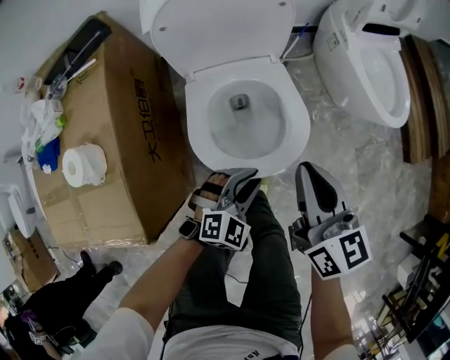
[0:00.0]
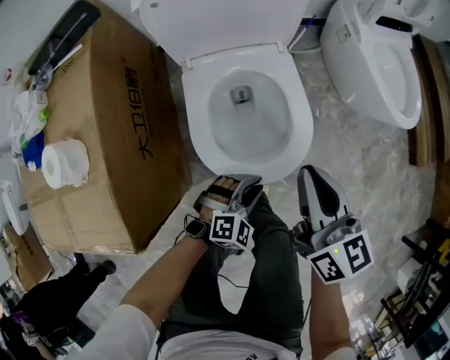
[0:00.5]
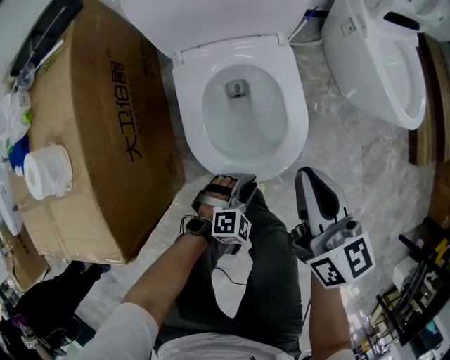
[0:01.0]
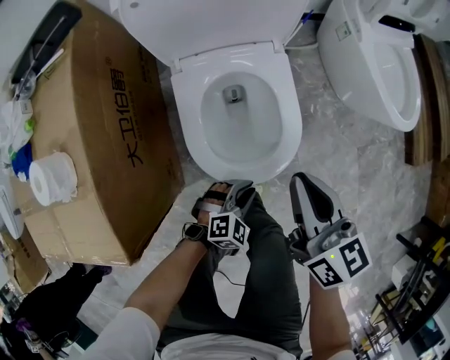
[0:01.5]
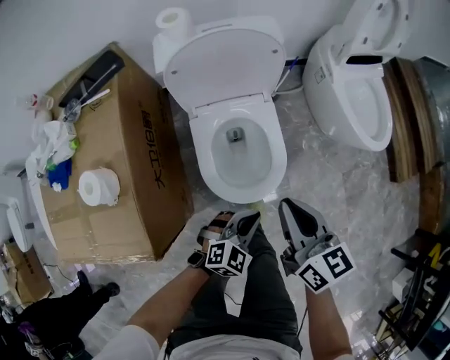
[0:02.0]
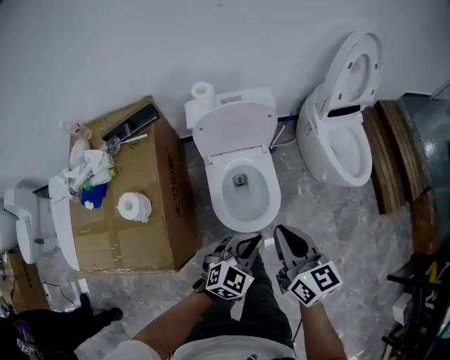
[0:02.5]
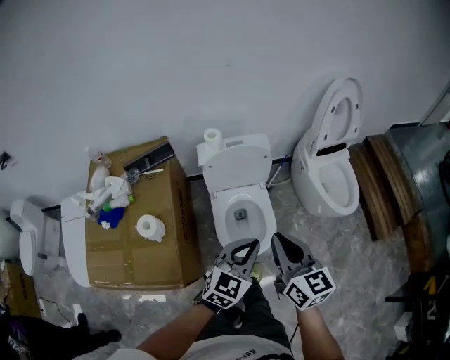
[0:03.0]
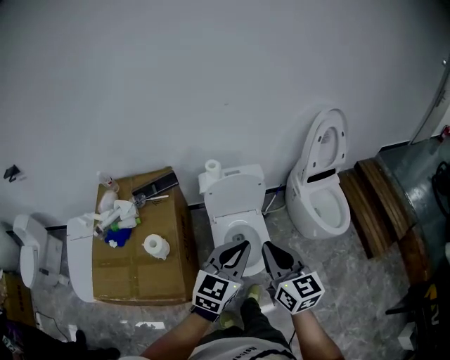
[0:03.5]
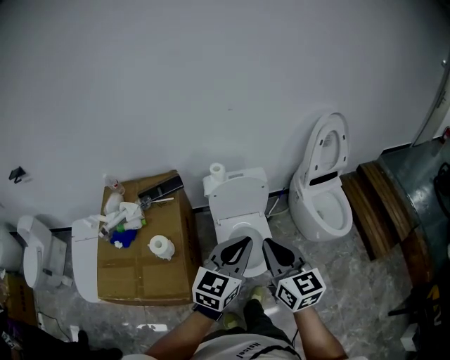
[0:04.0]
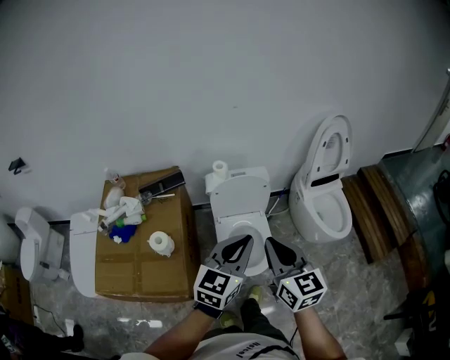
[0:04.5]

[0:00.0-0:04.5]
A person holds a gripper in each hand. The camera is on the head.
0.0 to 2.0 s: The right gripper goes downward and returns, roughly 10 cm each way. The left gripper moves some 20 cm downward and comes back.
2.0 to 4.5 s: The grippers both shift upward by roughly 40 cm. The right gripper changes its angle by roughly 30 degrees. The left gripper points its fingers approximately 30 degrees further upward.

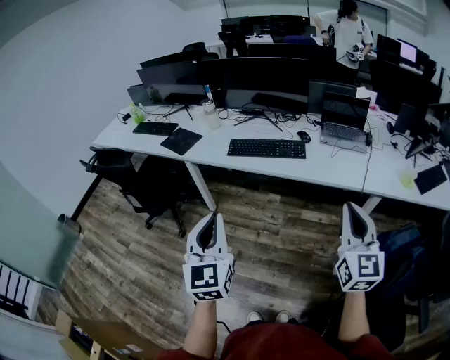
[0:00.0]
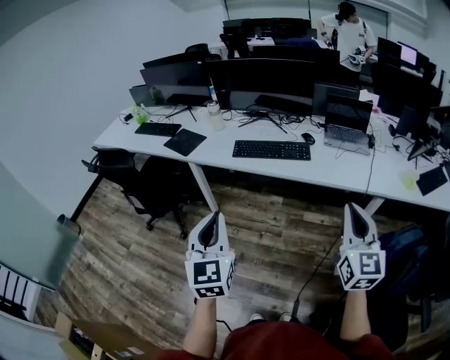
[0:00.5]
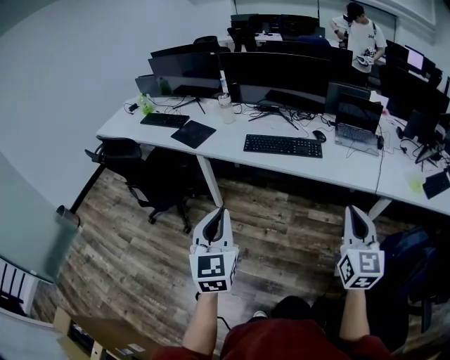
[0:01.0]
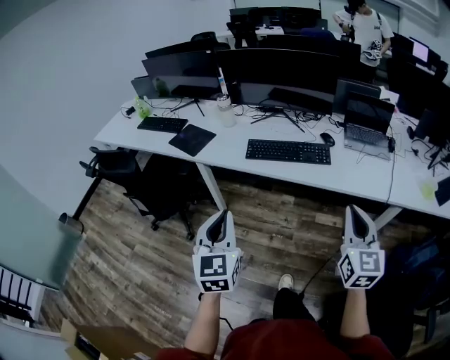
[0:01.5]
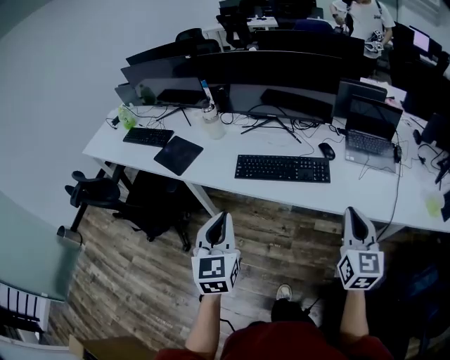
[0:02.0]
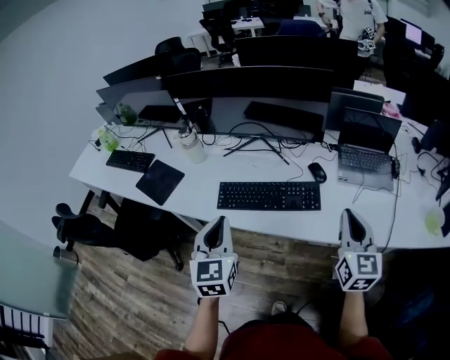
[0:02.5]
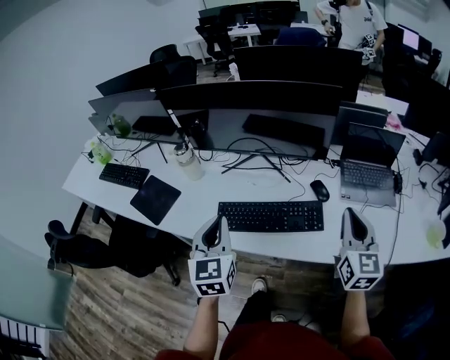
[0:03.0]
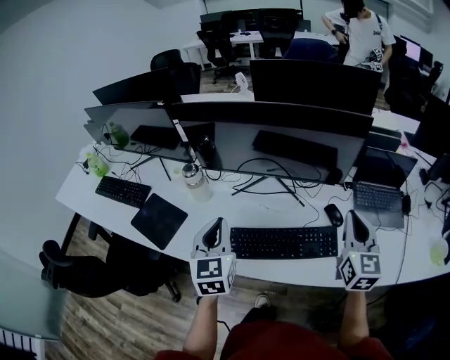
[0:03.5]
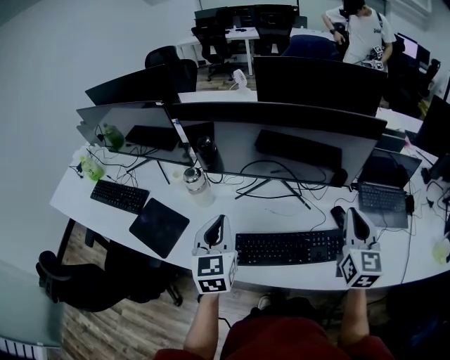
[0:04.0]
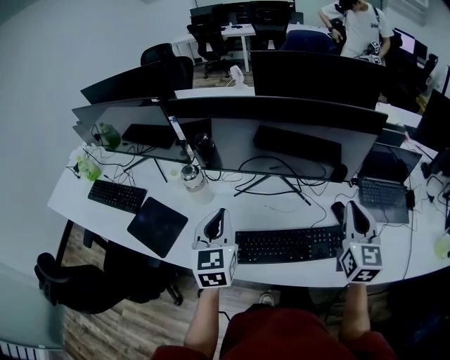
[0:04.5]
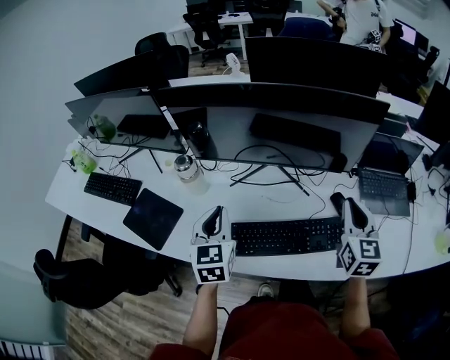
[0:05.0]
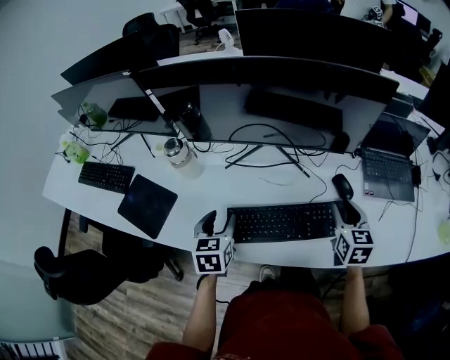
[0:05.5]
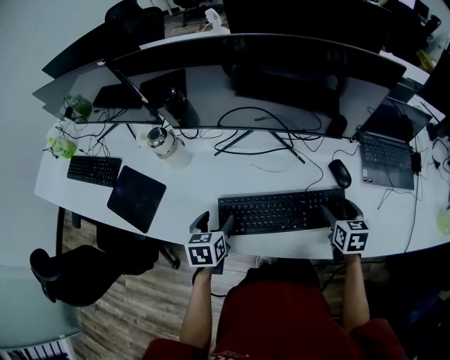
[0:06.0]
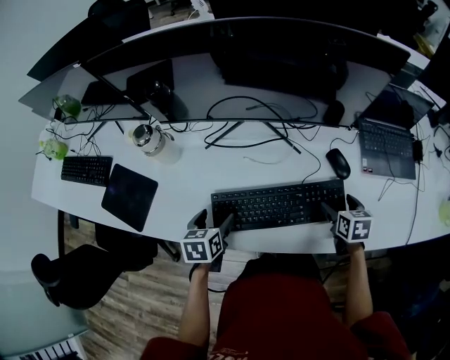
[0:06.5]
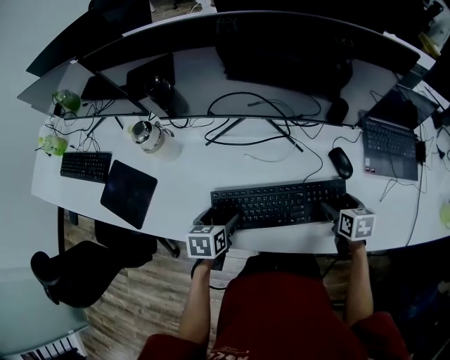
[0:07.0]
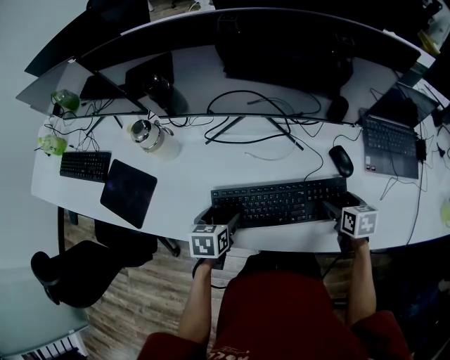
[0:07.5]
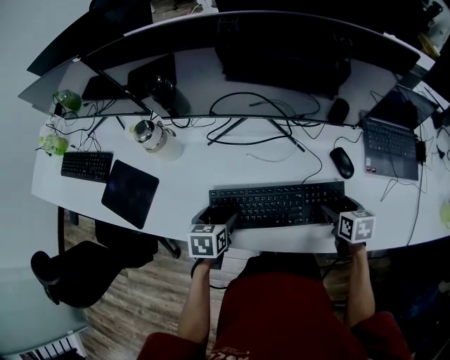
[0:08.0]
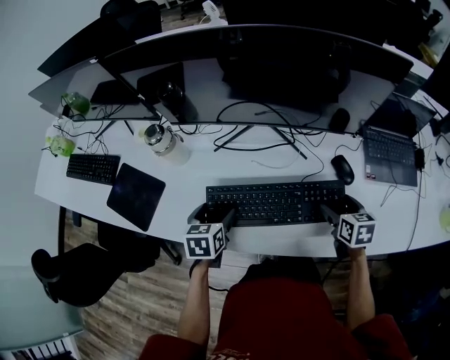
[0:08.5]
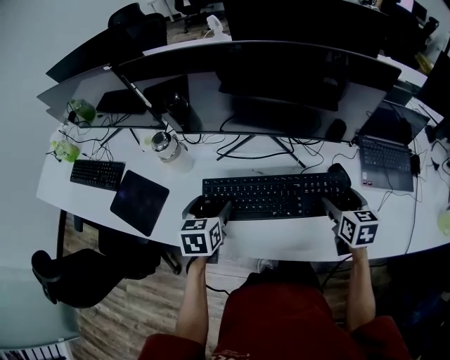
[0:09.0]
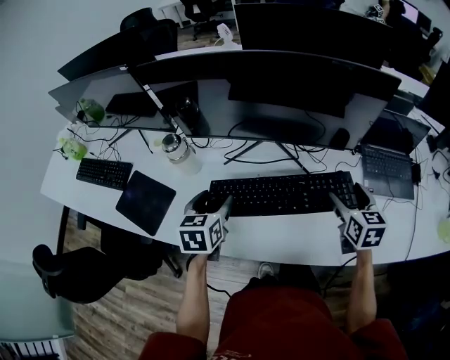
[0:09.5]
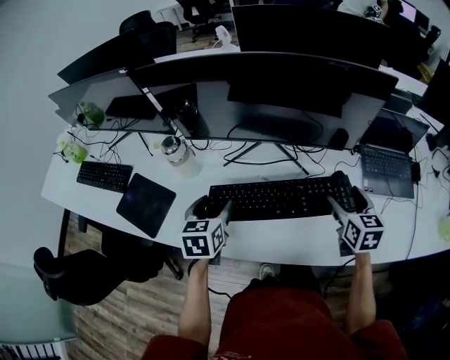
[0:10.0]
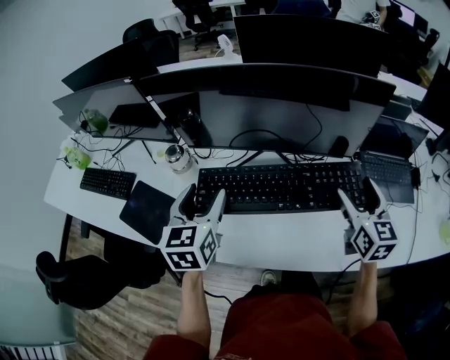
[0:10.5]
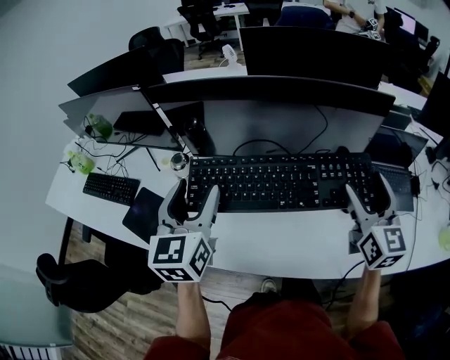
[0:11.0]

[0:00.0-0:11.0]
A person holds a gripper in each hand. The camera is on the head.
0.0 to 2.0 s: Both grippers travel together forward, some 25 cm.
2.0 to 3.5 s: The grippers both shift forward by some 35 cm.
3.5 to 5.5 s: Both grippers move downward, approximately 15 cm. The left gripper swivels roughly 30 degrees, and opens its fingers. Meanwhile the right gripper changes its angle by some 20 degrees.
5.5 to 7.5 s: The grippers both shift downward by roughly 15 cm. The right gripper swivels about 30 degrees, and opens its fingers. Meanwhile the left gripper turns by approximately 20 degrees, and opens.
7.5 to 9.0 s: The left gripper travels upward and forward by roughly 10 cm. The right gripper travels upward by about 10 cm.
9.0 to 11.0 s: Both grippers travel together upward, approximately 25 cm. The right gripper angles its fingers upward, by approximately 30 degrees; the left gripper points its fingers some 30 degrees further upward.

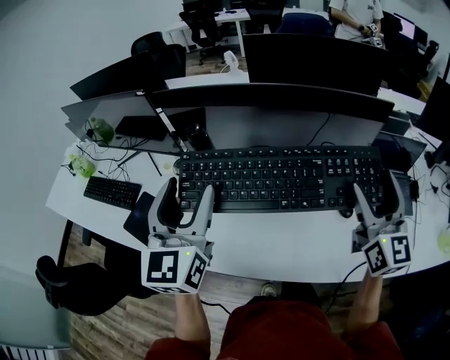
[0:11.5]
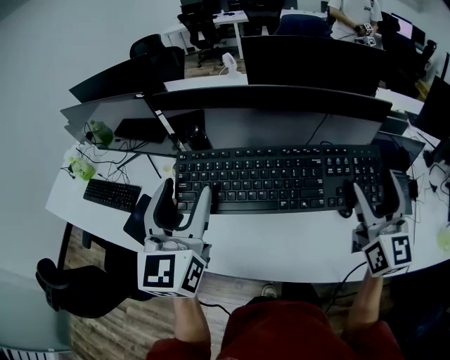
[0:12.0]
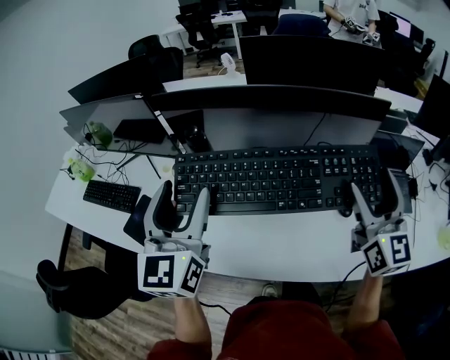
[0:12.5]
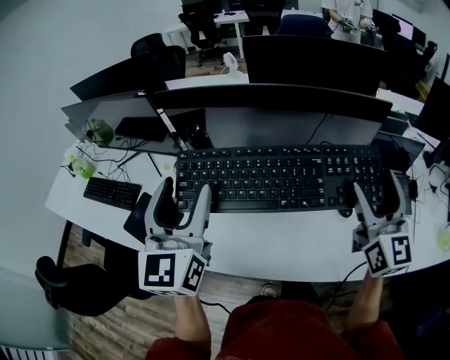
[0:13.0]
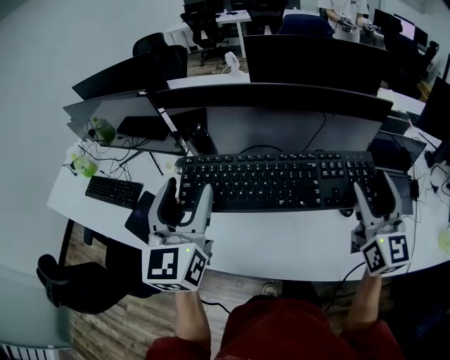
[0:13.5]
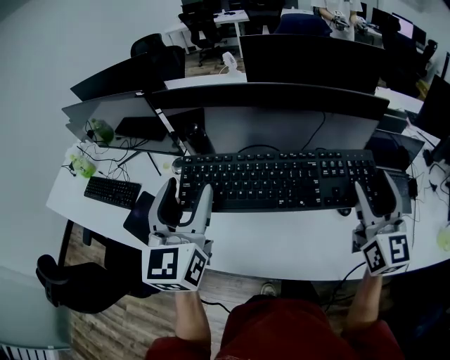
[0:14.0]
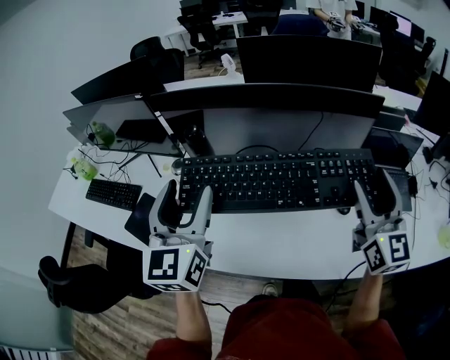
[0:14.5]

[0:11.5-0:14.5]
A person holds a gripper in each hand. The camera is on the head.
11.5 to 13.0 s: Both grippers stay about where they are.
13.0 to 14.5 s: The two grippers keep their place.

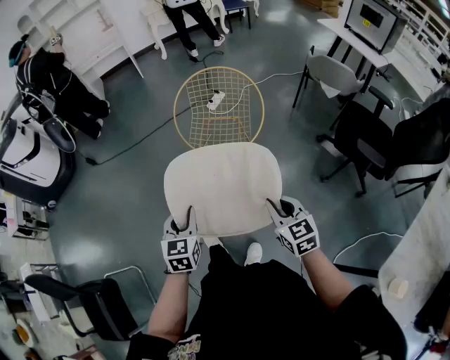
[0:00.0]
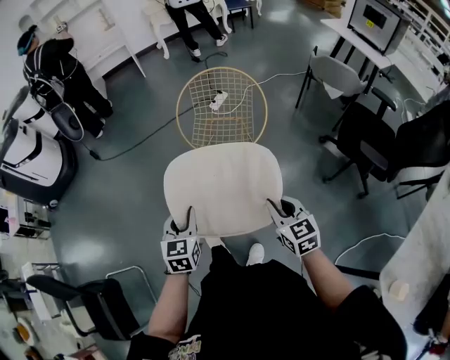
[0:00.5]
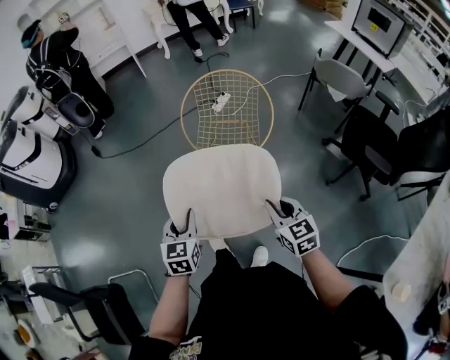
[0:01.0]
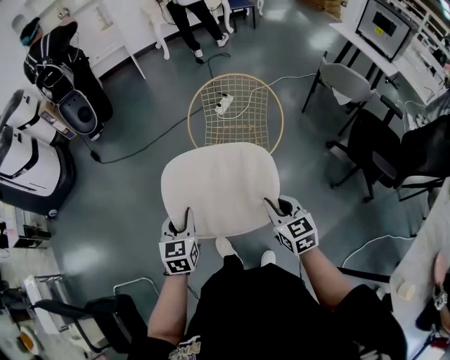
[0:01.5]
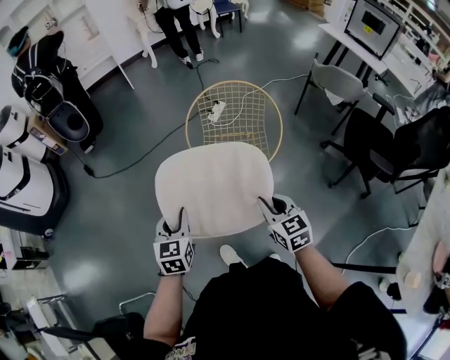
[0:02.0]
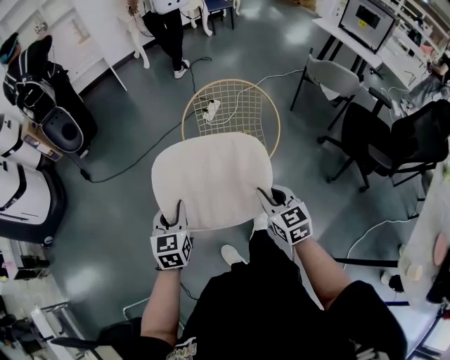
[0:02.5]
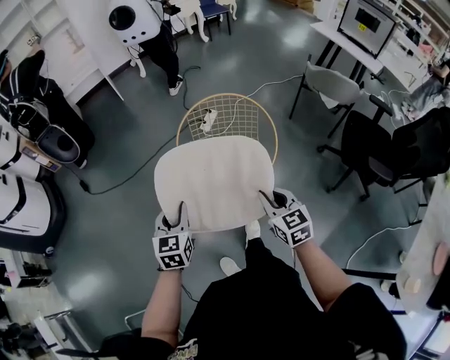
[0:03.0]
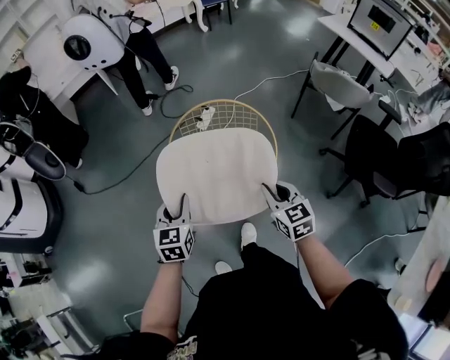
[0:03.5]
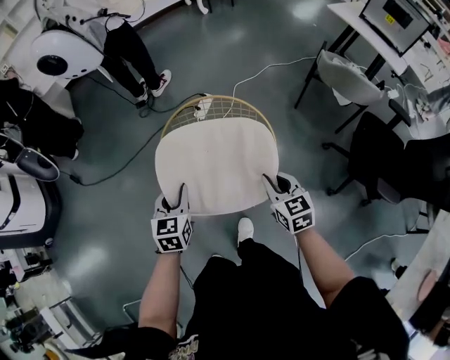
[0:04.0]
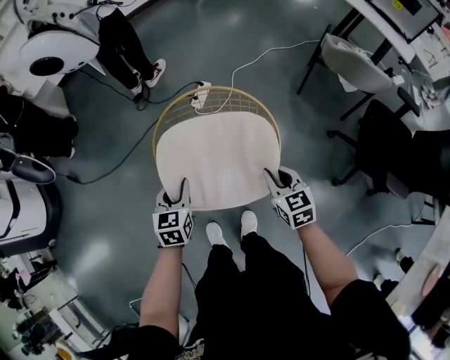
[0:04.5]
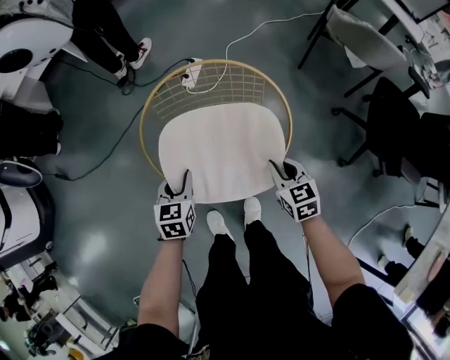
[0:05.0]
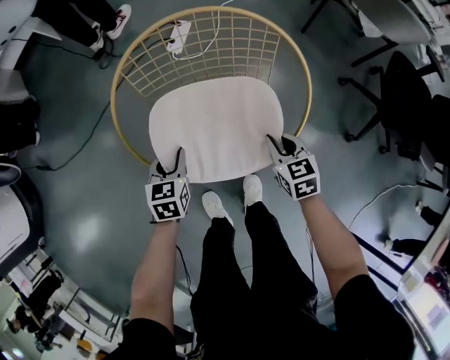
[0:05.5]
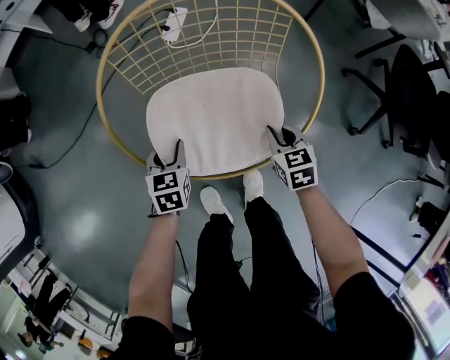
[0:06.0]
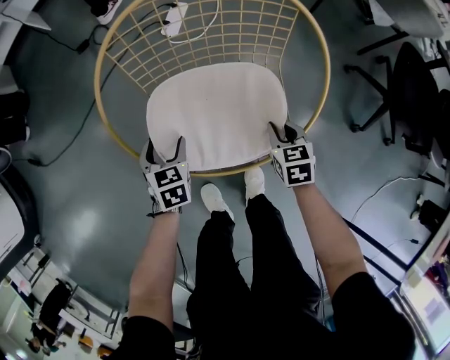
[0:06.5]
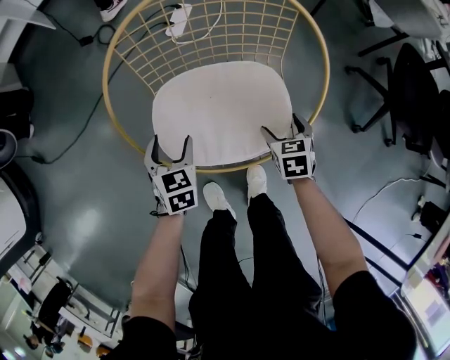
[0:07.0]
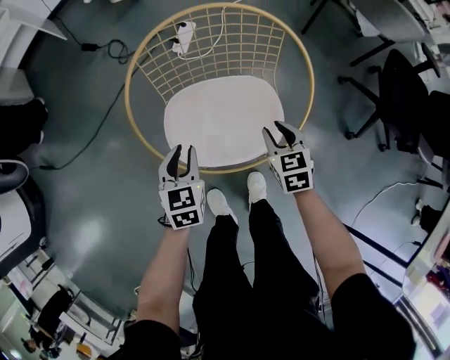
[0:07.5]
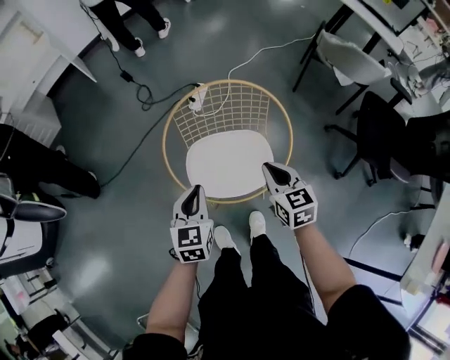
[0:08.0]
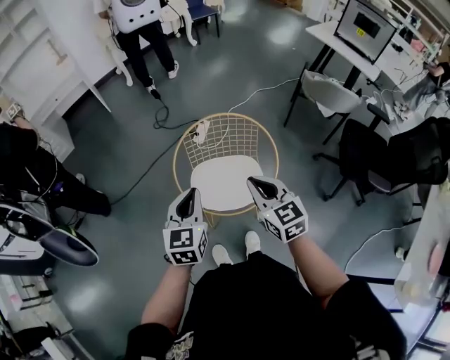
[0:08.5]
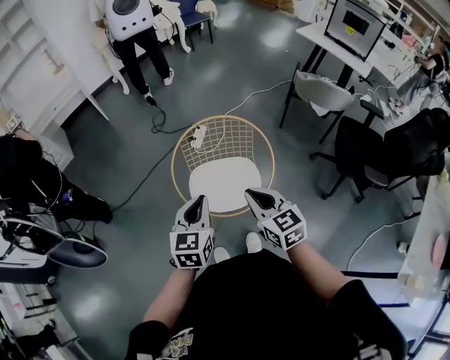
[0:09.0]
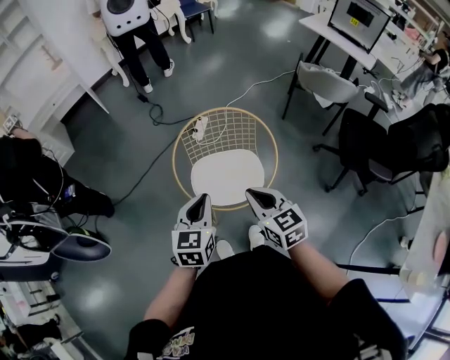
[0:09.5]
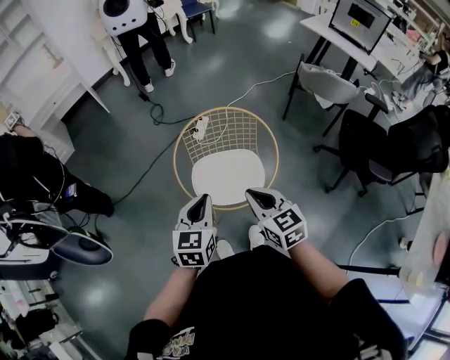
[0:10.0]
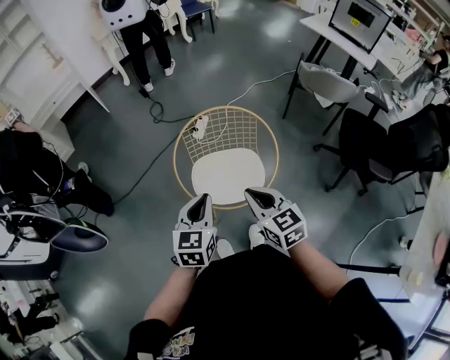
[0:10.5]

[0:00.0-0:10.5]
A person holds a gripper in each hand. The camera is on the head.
0.0 to 2.0 s: Both grippers travel together forward and to the left, about 25 cm.
2.0 to 4.0 s: Both grippers move forward and to the right, approximately 35 cm.
4.0 to 6.5 s: The grippers both shift downward by approximately 40 cm. The right gripper changes its angle by about 30 degrees; the left gripper changes its angle by roughly 20 degrees, and opens its fingers.
6.5 to 8.5 s: The two grippers go about 50 cm upward. The left gripper points its fingers roughly 30 degrees further upward, and closes. Meanwhile the right gripper angles its fingers upward, by some 30 degrees, and opens and closes again.
8.5 to 10.5 s: The left gripper changes place by some 5 cm. The right gripper is displaced backward by about 5 cm.
